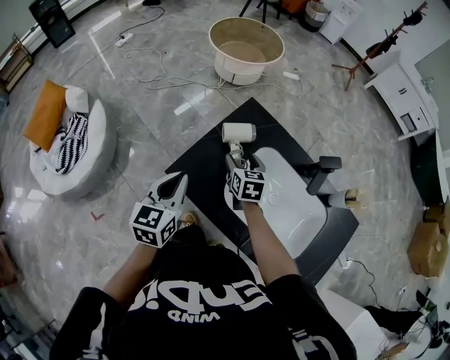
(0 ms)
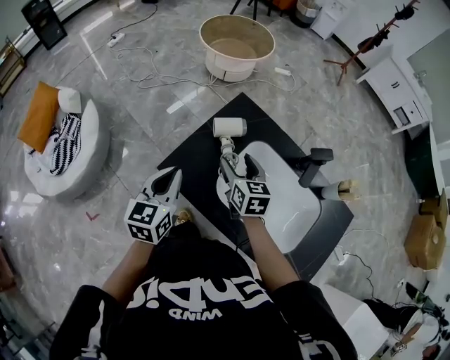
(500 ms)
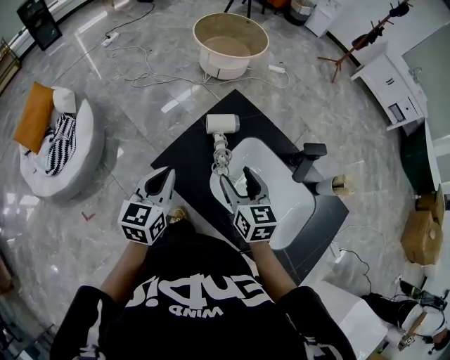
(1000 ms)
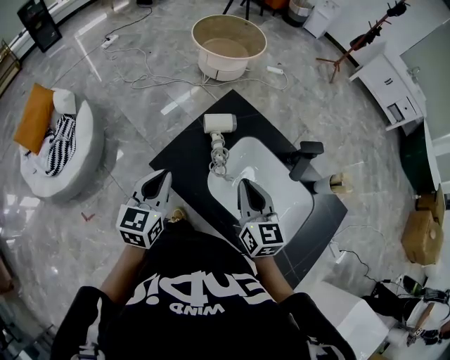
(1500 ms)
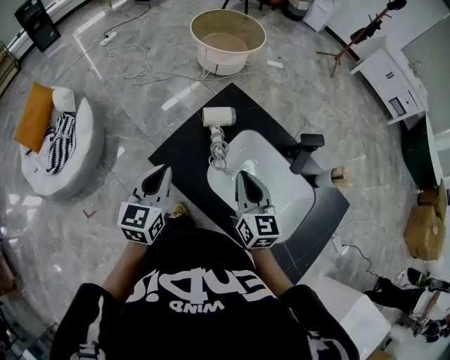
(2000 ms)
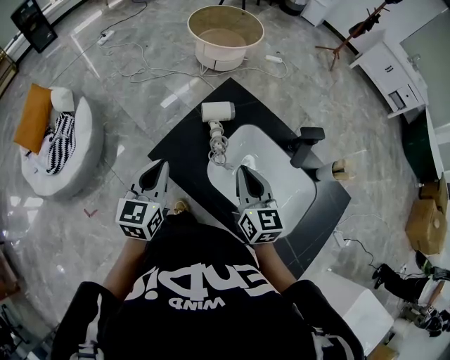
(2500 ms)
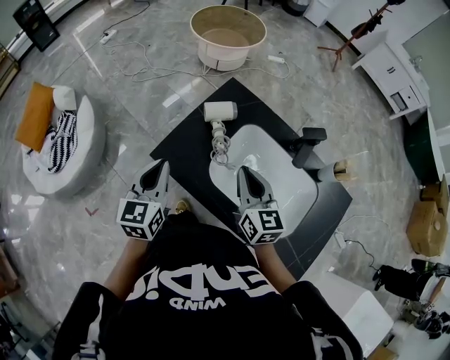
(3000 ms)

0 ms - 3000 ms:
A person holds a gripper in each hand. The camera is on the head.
0 ms - 1500 ms: The right gripper is displaced upward, backward and to the right by some 20 cm, turns by approximately 20 degrees, and closes its fingers.
1500 ms - 3000 ms: The grippers move only a little.

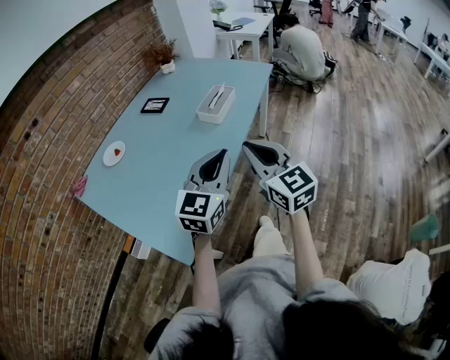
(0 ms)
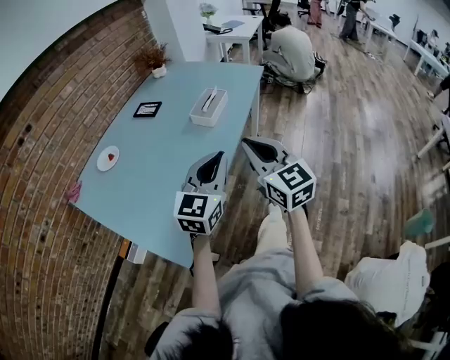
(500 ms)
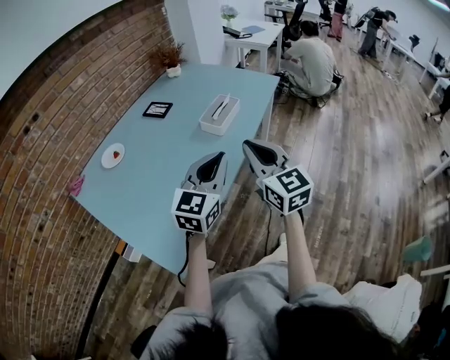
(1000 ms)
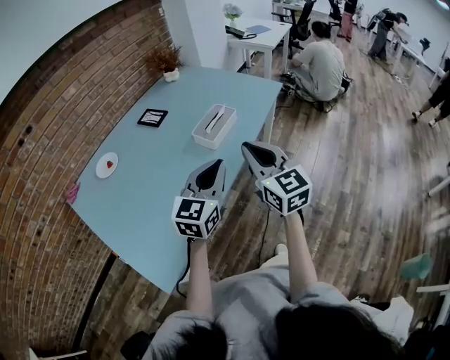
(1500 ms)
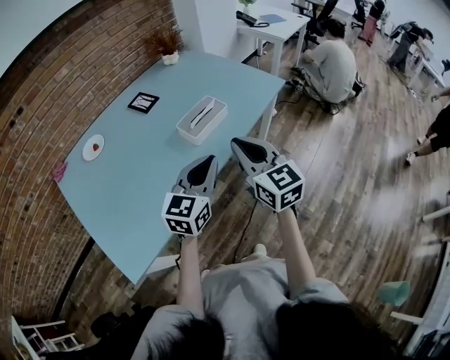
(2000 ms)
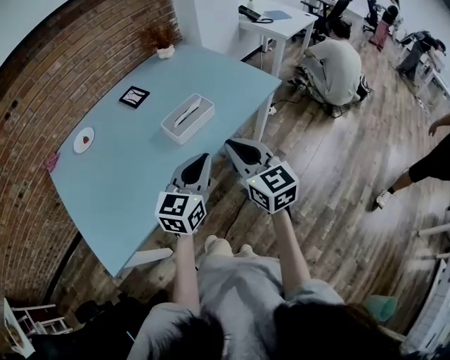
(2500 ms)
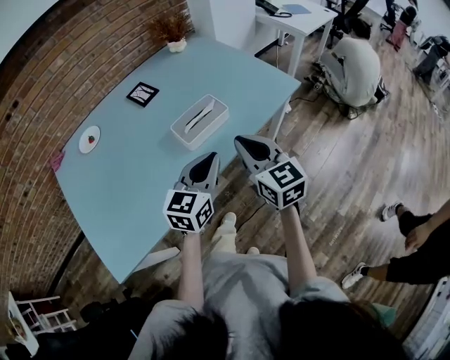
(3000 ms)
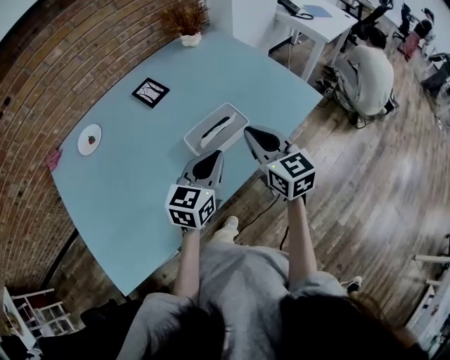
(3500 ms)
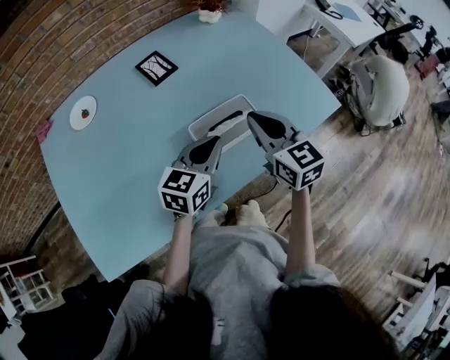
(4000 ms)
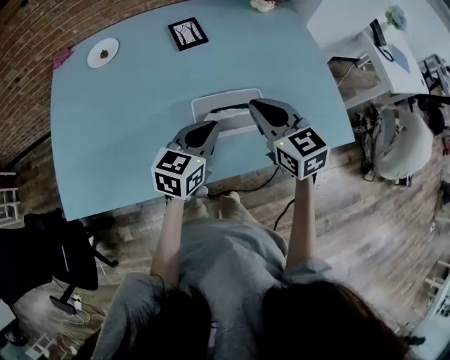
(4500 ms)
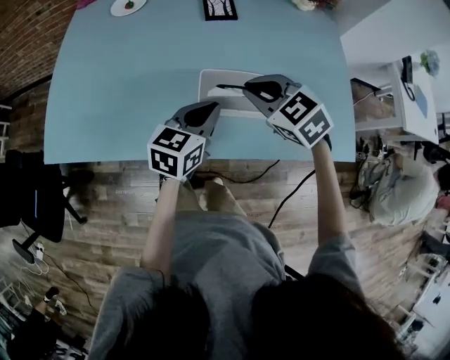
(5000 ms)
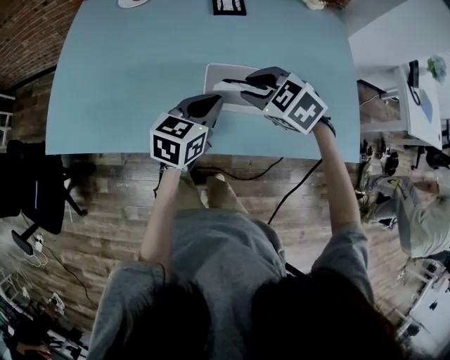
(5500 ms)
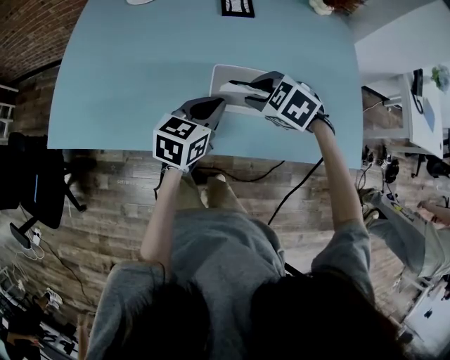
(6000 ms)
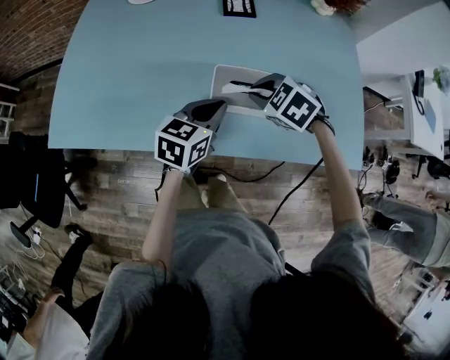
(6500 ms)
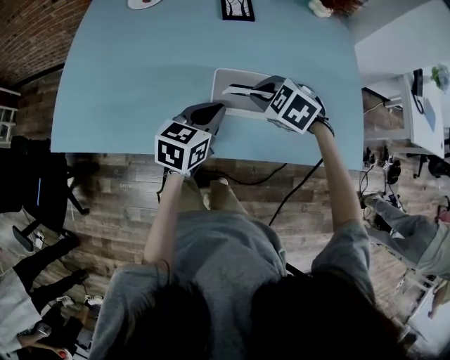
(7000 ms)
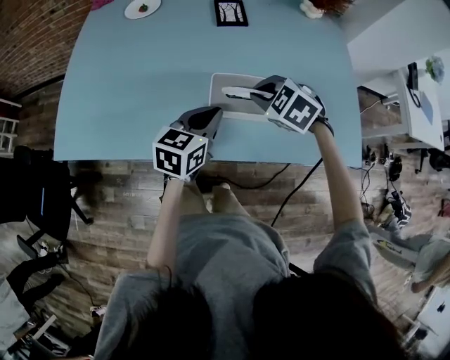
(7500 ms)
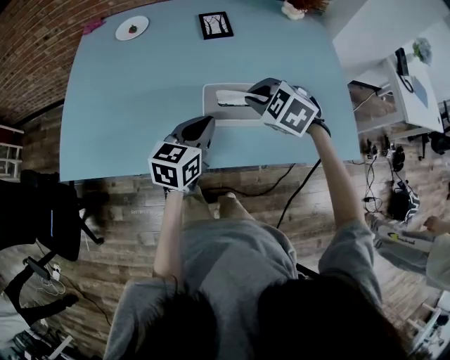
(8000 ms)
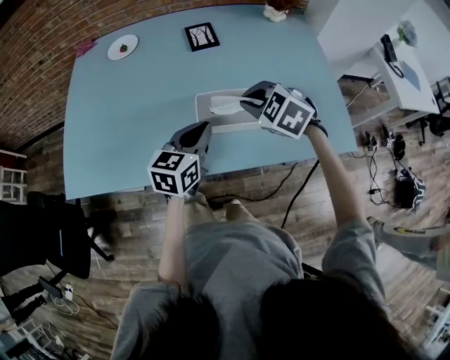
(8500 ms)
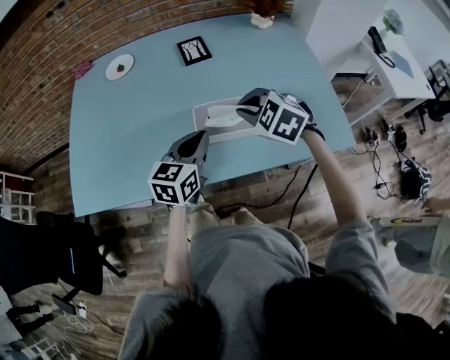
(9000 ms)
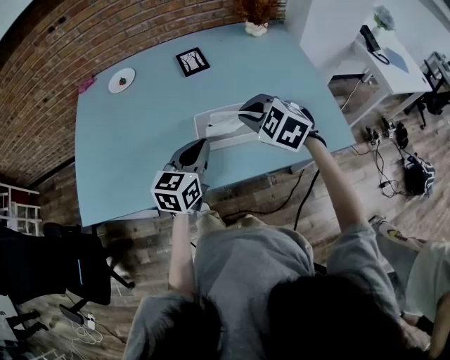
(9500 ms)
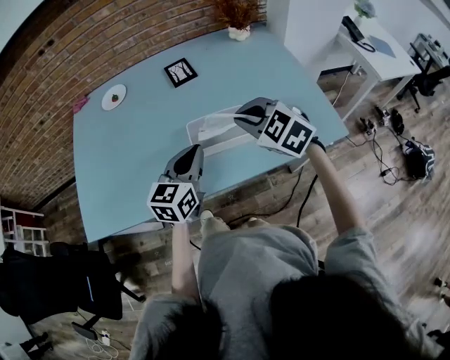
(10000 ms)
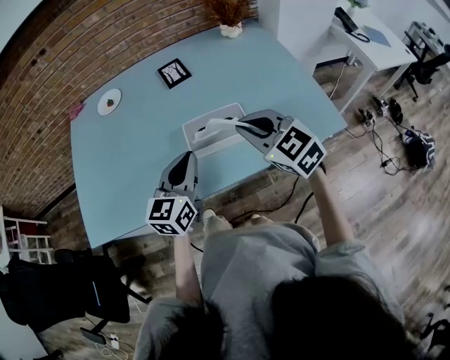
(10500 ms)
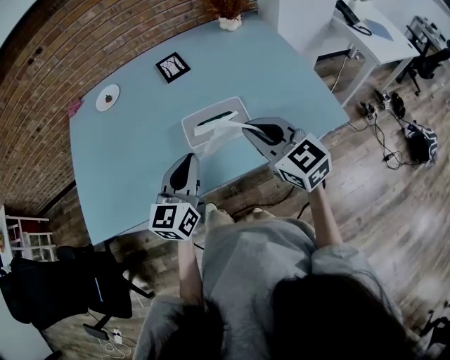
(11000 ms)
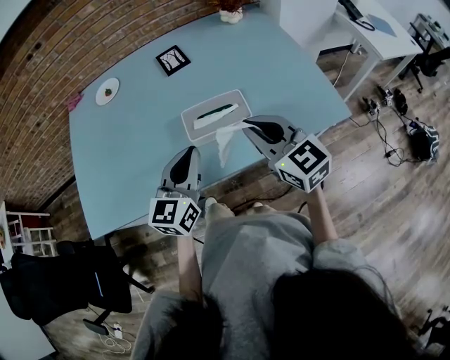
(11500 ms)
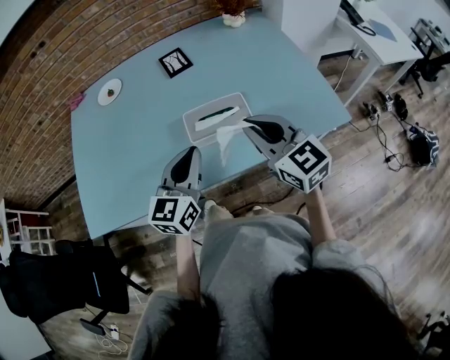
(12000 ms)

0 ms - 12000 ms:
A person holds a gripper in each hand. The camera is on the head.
0 ms - 2000 ms: Both grippers travel together forward and to the right, roughly 20 cm.
2000 ms - 4000 ms: Both grippers move forward, some 25 cm. The right gripper rotates approximately 20 degrees.
4000 ms - 6000 ms: The left gripper travels downward by some 5 cm, and swivels about 30 degrees. Meanwhile the right gripper heads downward, covering some 15 cm, angles its fingers downward, by some 50 degrees, and opens.
6000 ms - 8000 ms: The right gripper moves approximately 5 cm, and closes.
8000 ms - 10000 ms: The left gripper is displaced upward by some 5 cm; the right gripper moves upward and backward, about 10 cm, and swivels roughly 20 degrees.
10000 ms - 12000 ms: The right gripper moves backward, approximately 5 cm, and swivels roughly 40 degrees.

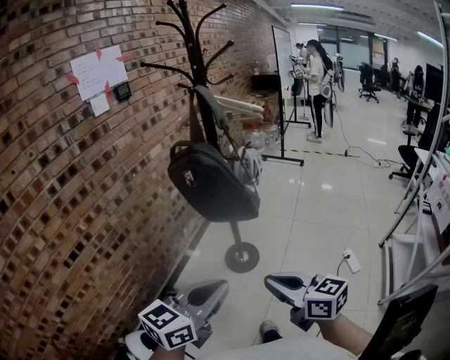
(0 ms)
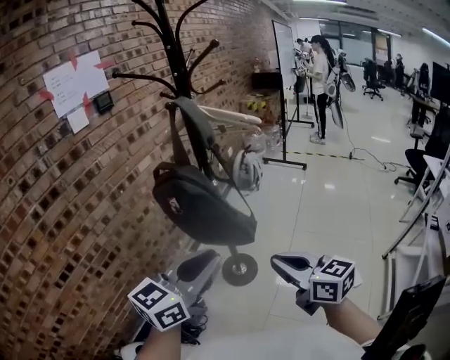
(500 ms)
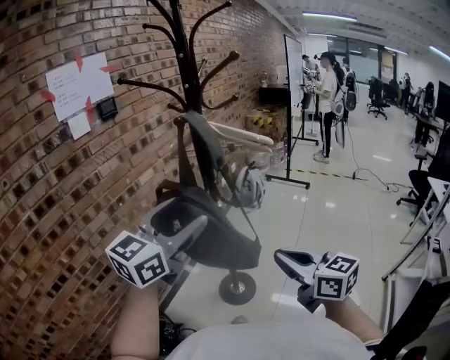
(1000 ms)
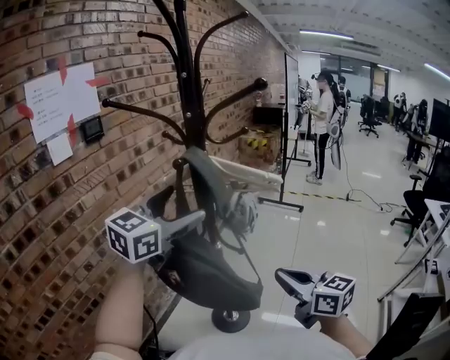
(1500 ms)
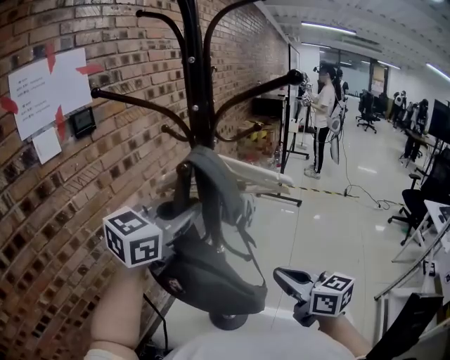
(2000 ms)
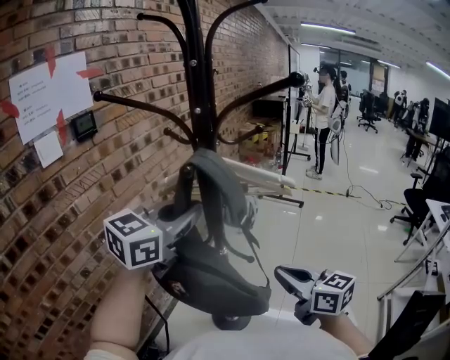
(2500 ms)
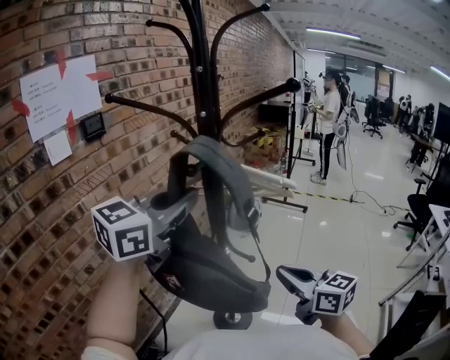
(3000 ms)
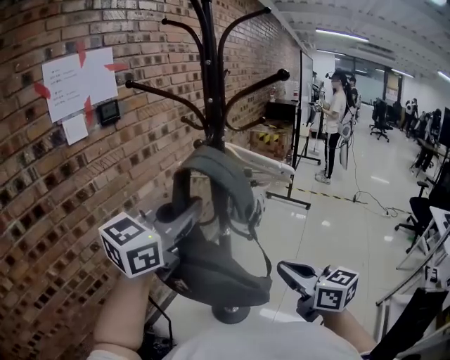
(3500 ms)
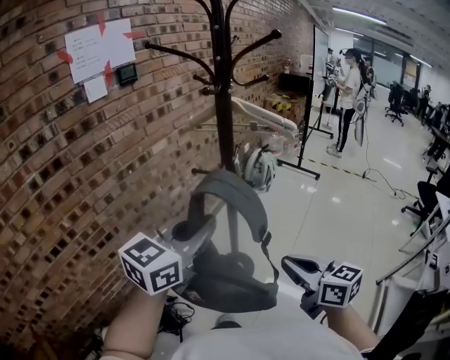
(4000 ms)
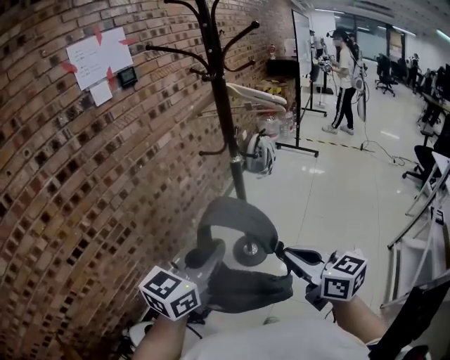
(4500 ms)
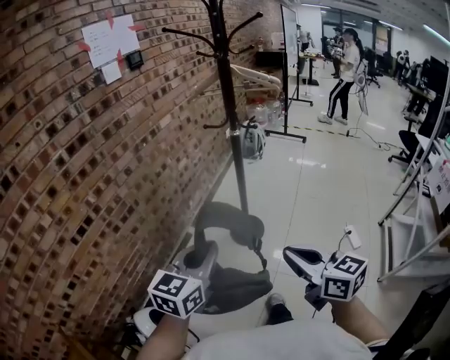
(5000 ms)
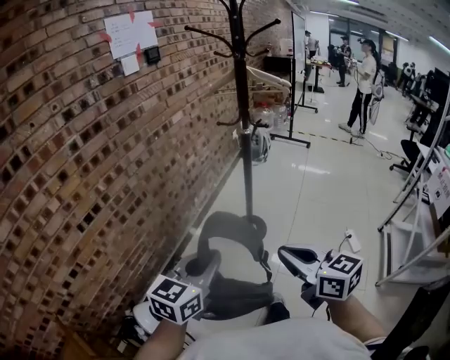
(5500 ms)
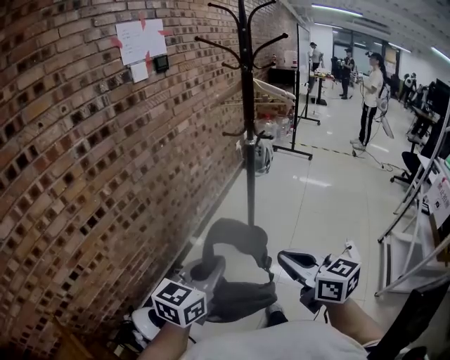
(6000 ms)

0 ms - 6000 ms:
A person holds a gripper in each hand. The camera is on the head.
0 ms - 2000 ms: The two grippers travel together, forward, roughly 50 cm. The left gripper swivels some 20 degrees, and opens, then closes once more.
2000 ms - 4000 ms: The grippers both shift backward by about 20 cm.
4000 ms - 6000 ms: The right gripper goes roughly 35 cm backward and to the left. Meanwhile the left gripper goes roughly 35 cm backward, to the left and downward.

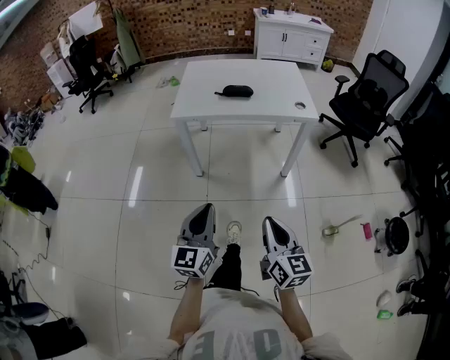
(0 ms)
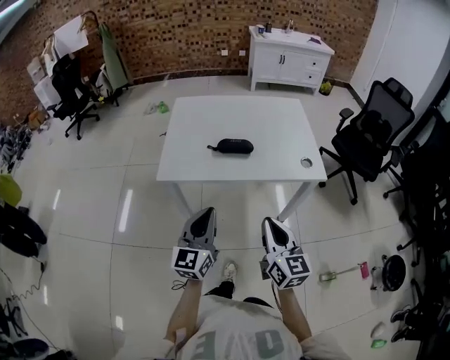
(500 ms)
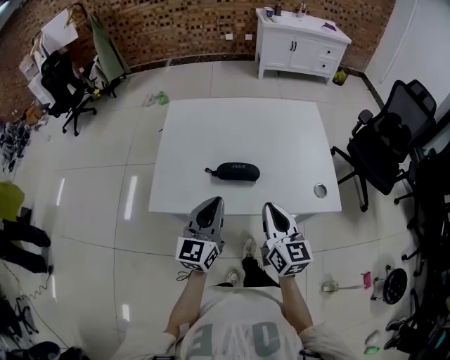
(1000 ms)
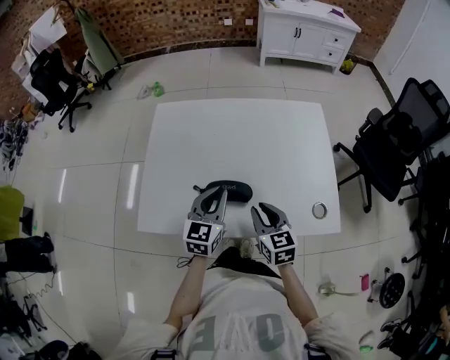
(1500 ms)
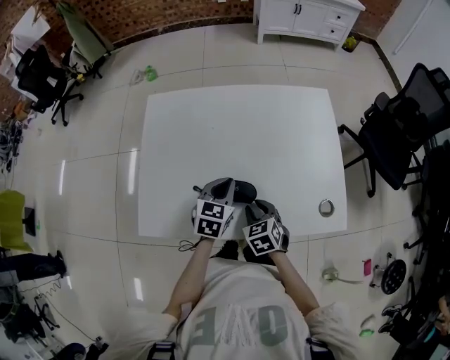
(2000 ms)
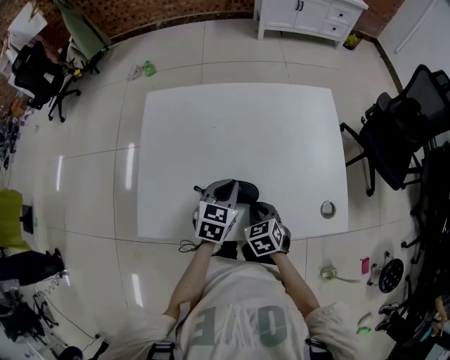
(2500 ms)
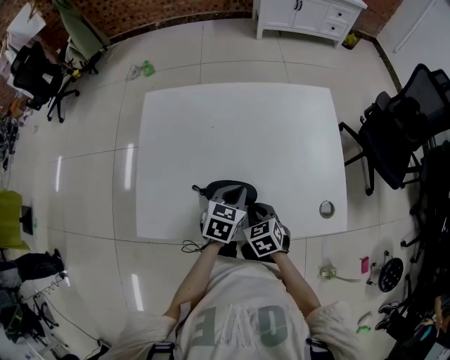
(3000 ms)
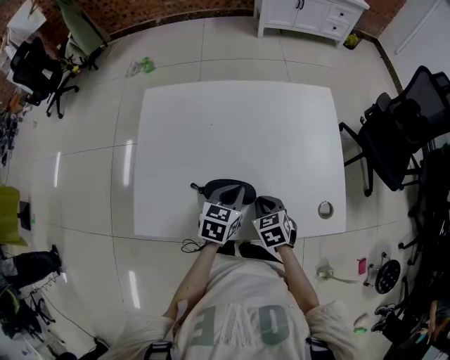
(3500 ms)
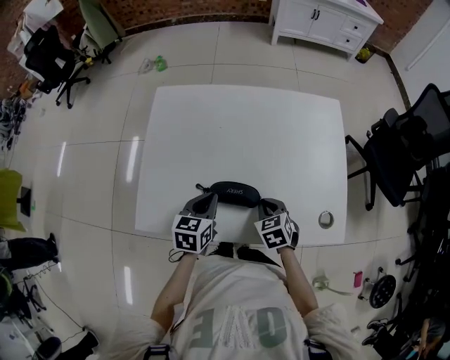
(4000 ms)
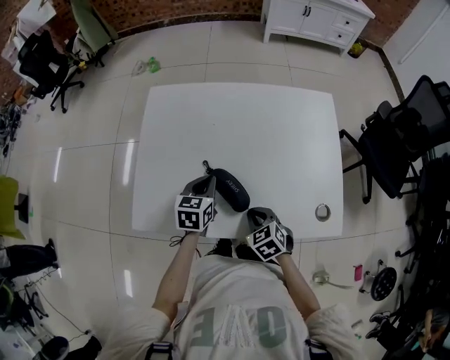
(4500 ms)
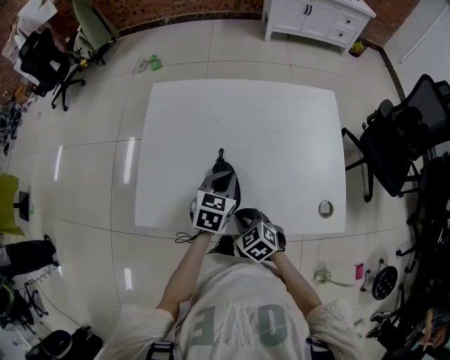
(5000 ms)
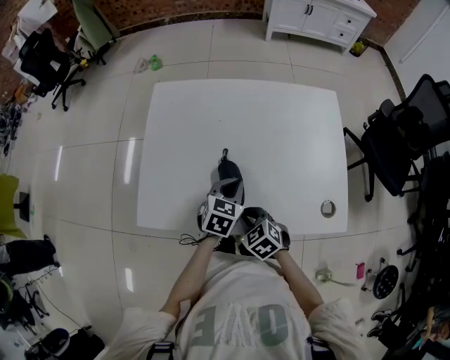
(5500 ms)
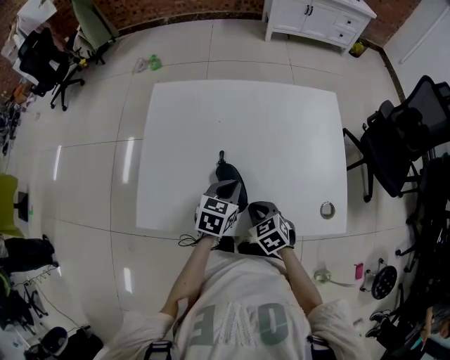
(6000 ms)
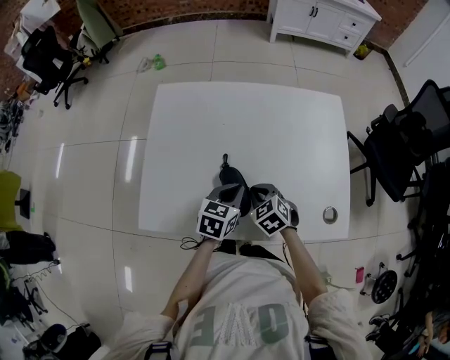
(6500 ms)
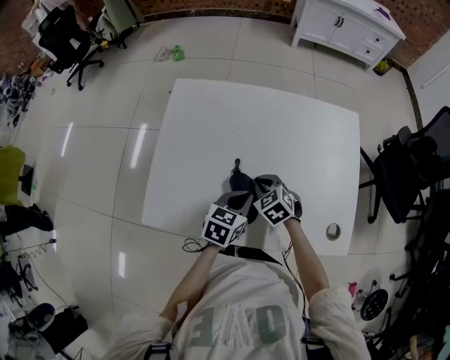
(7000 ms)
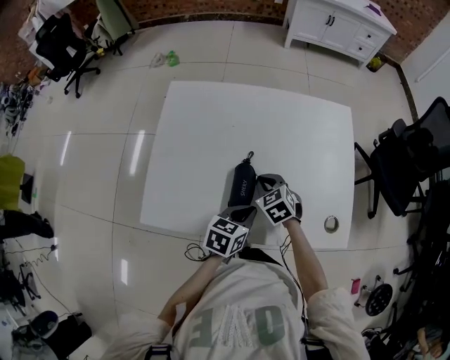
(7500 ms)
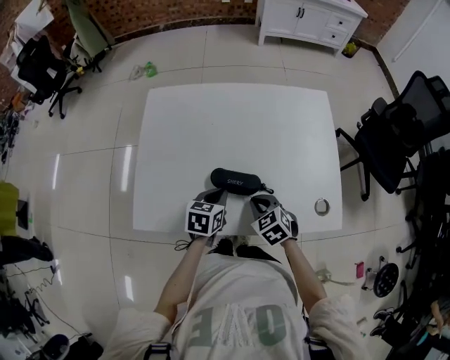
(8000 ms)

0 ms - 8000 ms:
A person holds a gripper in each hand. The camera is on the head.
0 ms - 2000 ms: The two grippers travel together, forward, some 70 cm. The left gripper angles its fingers downward, by some 40 degrees; the right gripper angles its fingers downward, by about 40 degrees, and opens its fingers.
2000 ms - 4000 ms: The right gripper closes up. Meanwhile the left gripper travels to the left by approximately 5 cm.
4000 ms - 6000 ms: The left gripper moves to the right, about 5 cm, while the right gripper is displaced to the left by approximately 5 cm.
6000 ms - 8000 ms: The right gripper goes forward and returns, some 15 cm each way.
